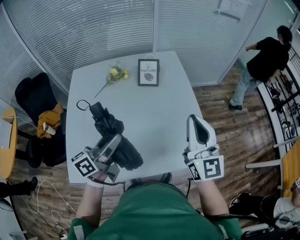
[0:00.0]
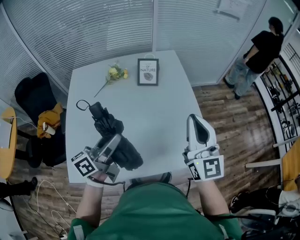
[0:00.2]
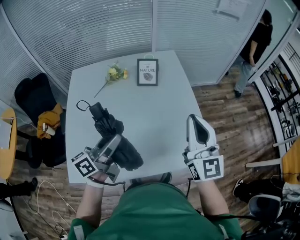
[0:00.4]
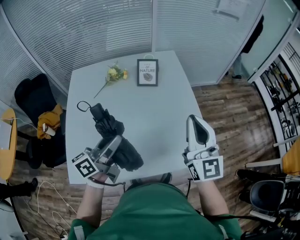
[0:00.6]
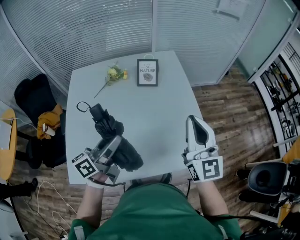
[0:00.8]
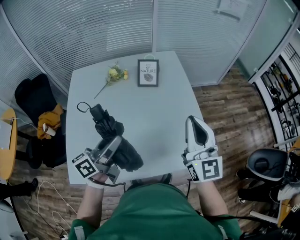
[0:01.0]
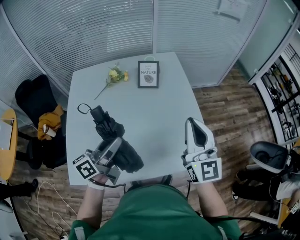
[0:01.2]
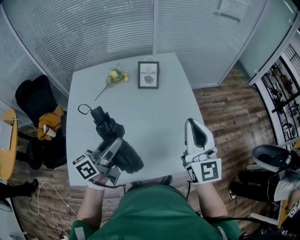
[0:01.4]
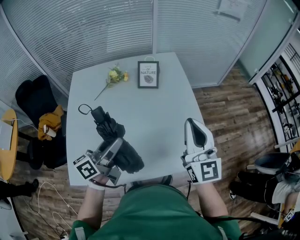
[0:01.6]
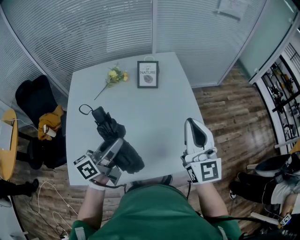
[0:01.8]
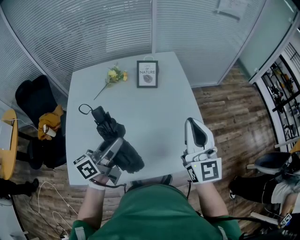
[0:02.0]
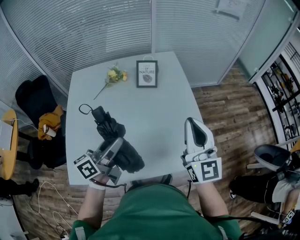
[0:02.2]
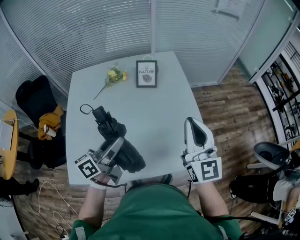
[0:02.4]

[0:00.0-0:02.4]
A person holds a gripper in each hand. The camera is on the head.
0:00.0 to 0:01.2: Neither gripper changes place.
0:01.2 to 0:02.4: Both grippers stay put.

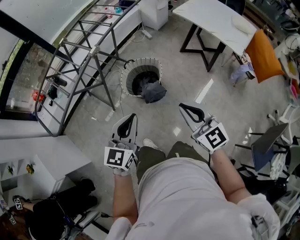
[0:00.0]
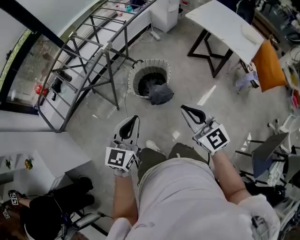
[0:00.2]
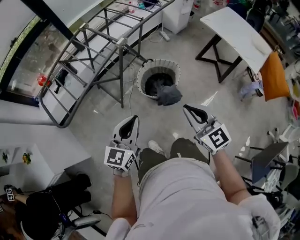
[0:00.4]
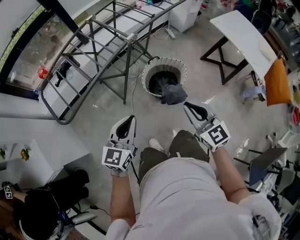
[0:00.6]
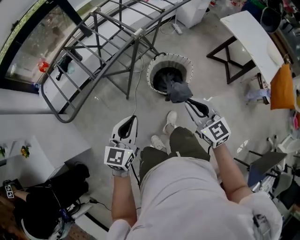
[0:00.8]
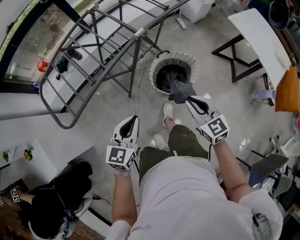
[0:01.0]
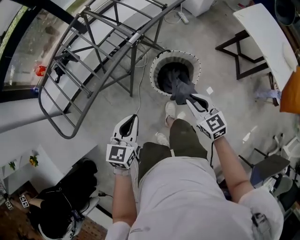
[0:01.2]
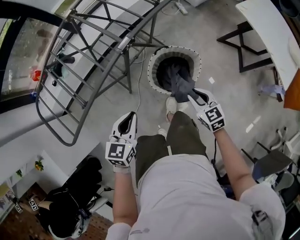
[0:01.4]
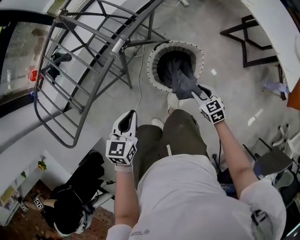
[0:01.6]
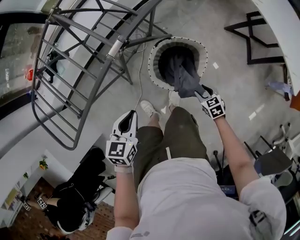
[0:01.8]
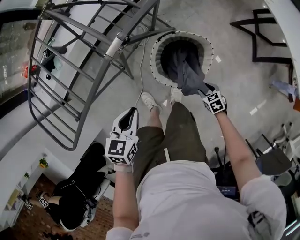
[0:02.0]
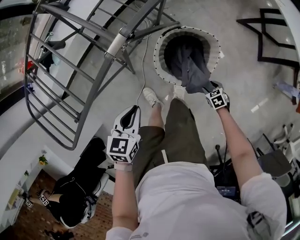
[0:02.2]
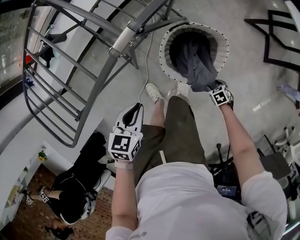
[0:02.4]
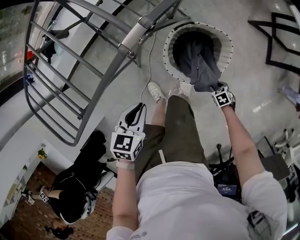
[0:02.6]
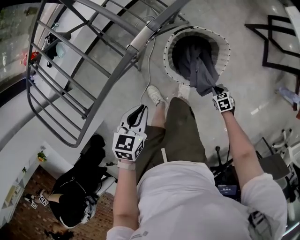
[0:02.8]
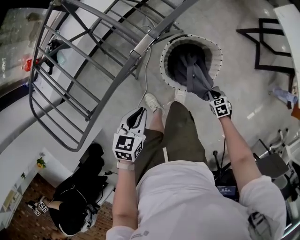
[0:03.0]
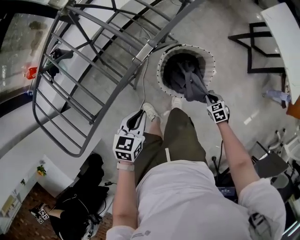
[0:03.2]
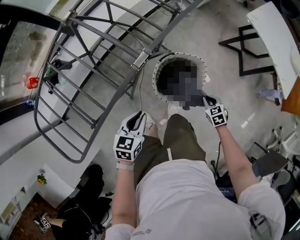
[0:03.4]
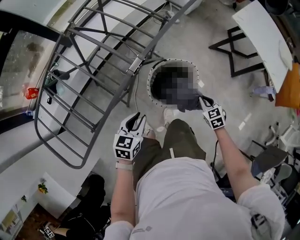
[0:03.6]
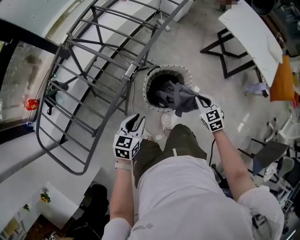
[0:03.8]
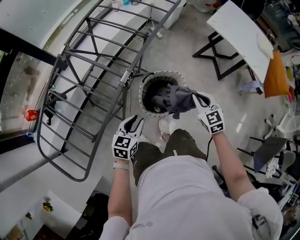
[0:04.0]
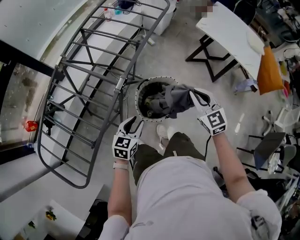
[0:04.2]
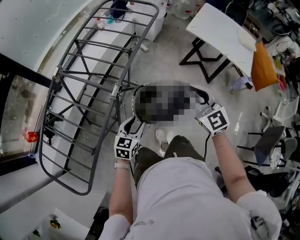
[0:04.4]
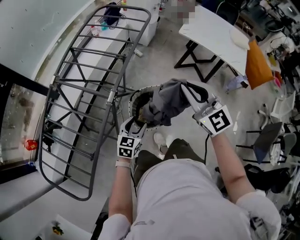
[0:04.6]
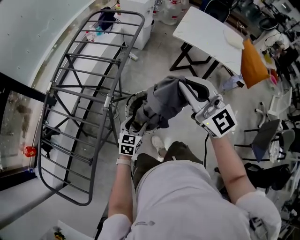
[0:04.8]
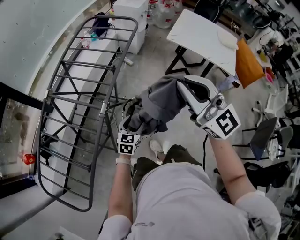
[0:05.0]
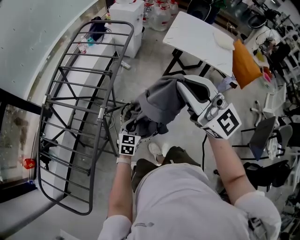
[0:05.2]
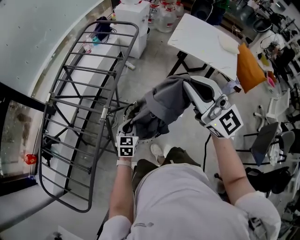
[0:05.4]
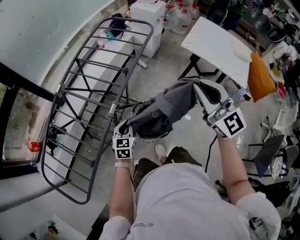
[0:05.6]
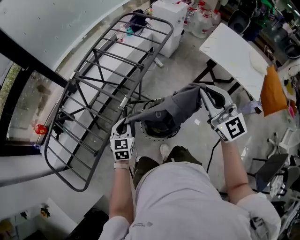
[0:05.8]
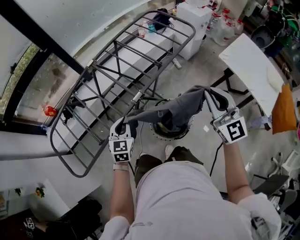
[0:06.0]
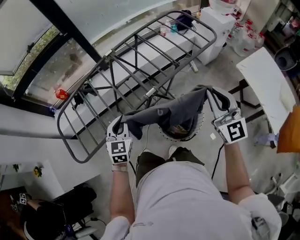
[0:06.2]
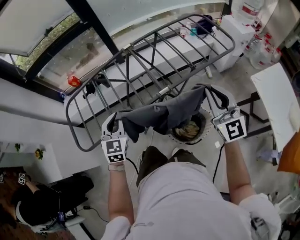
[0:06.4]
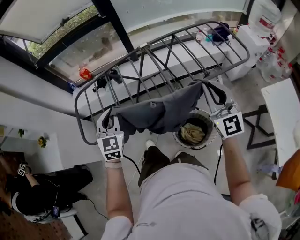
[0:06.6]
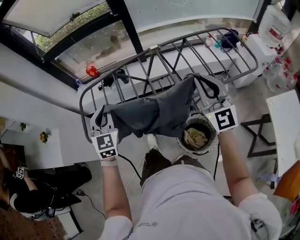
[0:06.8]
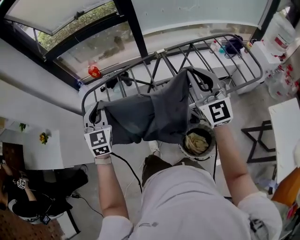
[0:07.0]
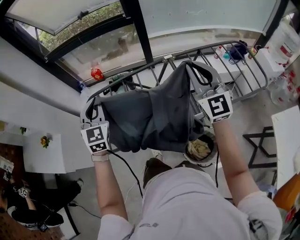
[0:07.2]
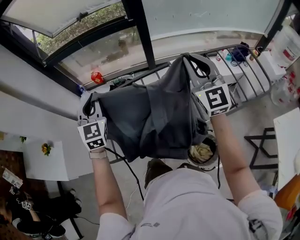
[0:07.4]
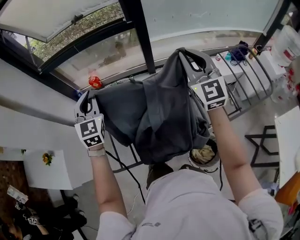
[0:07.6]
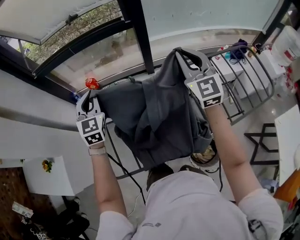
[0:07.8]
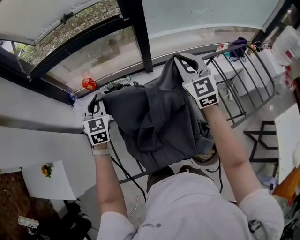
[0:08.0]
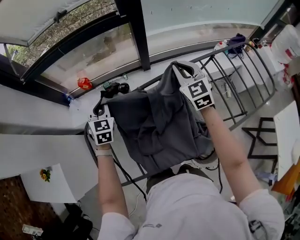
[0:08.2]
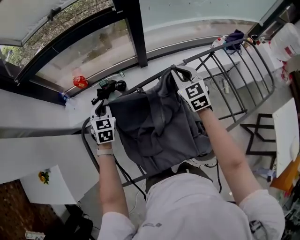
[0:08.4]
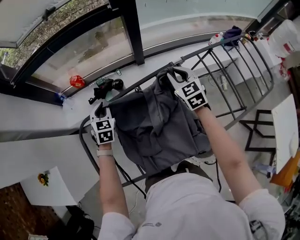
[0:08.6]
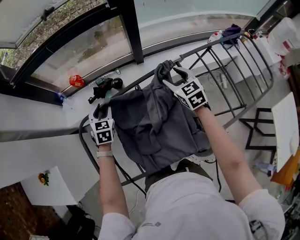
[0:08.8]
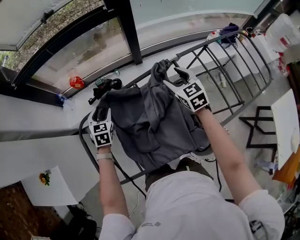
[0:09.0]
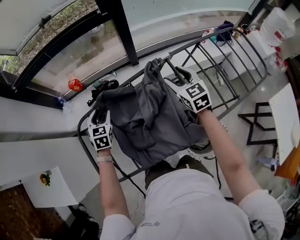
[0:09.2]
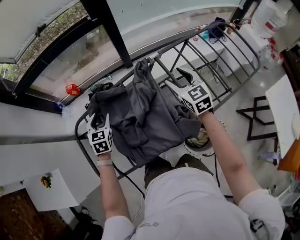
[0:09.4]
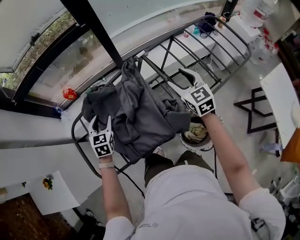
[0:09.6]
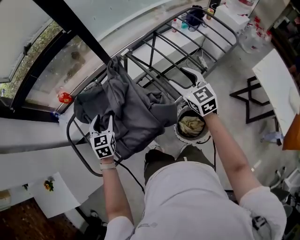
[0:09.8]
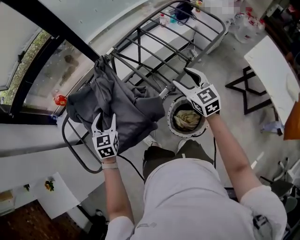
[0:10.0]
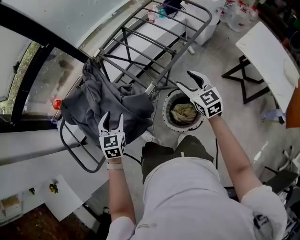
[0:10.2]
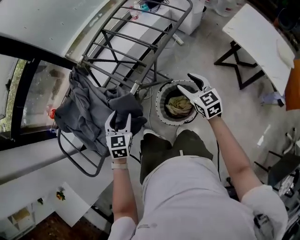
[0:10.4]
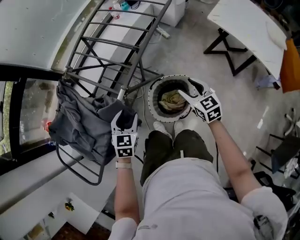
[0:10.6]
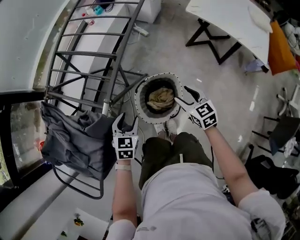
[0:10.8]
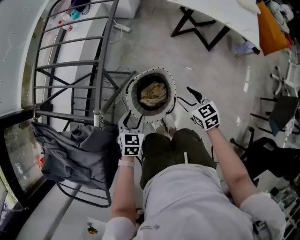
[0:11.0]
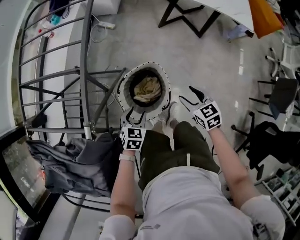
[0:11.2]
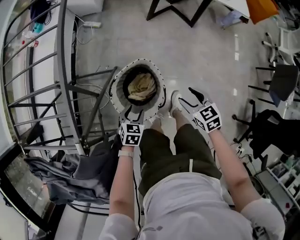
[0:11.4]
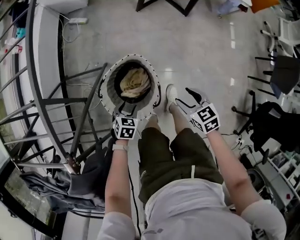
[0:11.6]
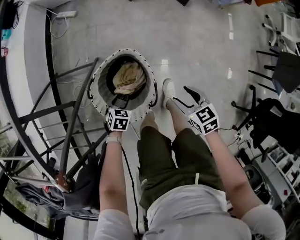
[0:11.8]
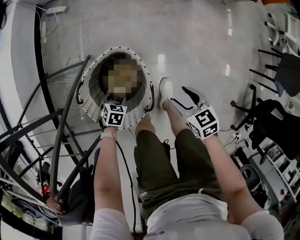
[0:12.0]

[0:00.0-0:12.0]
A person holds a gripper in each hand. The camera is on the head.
0:00.0 to 0:01.6: The right gripper moves downward and forward, roughly 50 cm, tilts its fingers roughly 40 degrees downward, and opens; the left gripper heads forward, downward and to the left, covering roughly 40 cm, and points its fingers about 30 degrees further downward.
0:01.6 to 0:03.0: The right gripper travels downward by some 20 cm, rotates roughly 20 degrees, and closes its fingers; the left gripper travels downward by approximately 10 cm.
0:03.0 to 0:04.4: The right gripper travels upward by about 50 cm, and tilts its fingers roughly 50 degrees upward. The left gripper shifts some 10 cm upward, swivels roughly 30 degrees, and opens its fingers.
0:04.4 to 0:06.0: The left gripper moves approximately 15 cm, changes its angle by approximately 40 degrees, and closes up. Meanwhile the right gripper shifts about 10 cm upward, and changes its angle by roughly 20 degrees.
0:06.0 to 0:07.6: The two grippers travel together, about 50 cm. The left gripper swivels about 40 degrees; the right gripper rotates roughly 30 degrees.
0:07.6 to 0:09.0: The grippers both shift downward by roughly 25 cm. The right gripper tilts its fingers some 30 degrees downward, and opens up, while the left gripper points its fingers some 30 degrees further downward, and opens up.
0:09.0 to 0:10.4: The two grippers travel together, approximately 50 cm. The right gripper changes its angle by some 30 degrees; the left gripper swivels roughly 40 degrees.
0:10.4 to 0:12.0: Both grippers travel together downward, about 50 cm. The left gripper points its fingers about 30 degrees further downward. Meanwhile the right gripper rotates about 50 degrees.

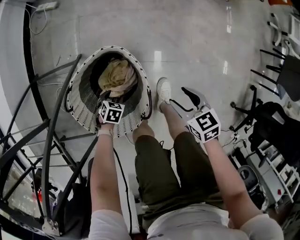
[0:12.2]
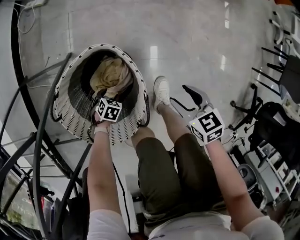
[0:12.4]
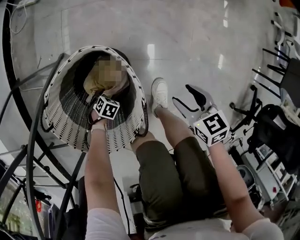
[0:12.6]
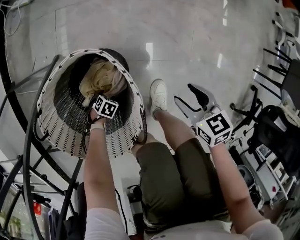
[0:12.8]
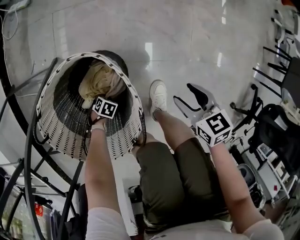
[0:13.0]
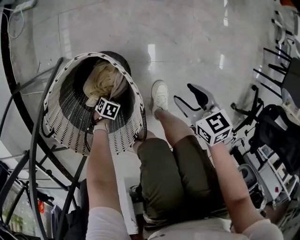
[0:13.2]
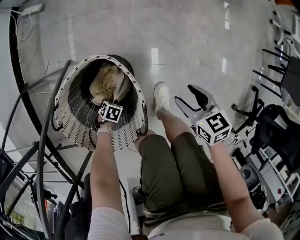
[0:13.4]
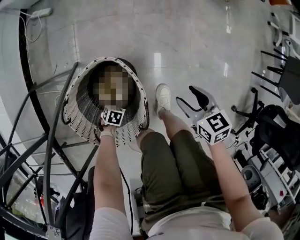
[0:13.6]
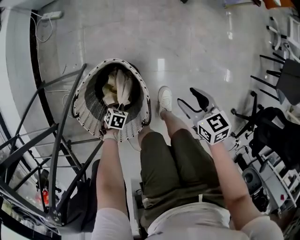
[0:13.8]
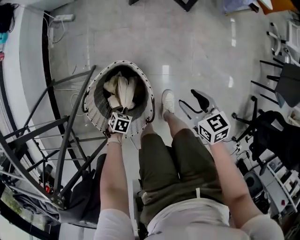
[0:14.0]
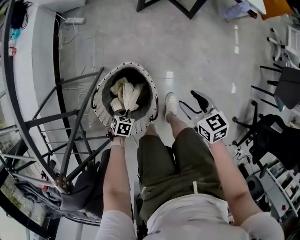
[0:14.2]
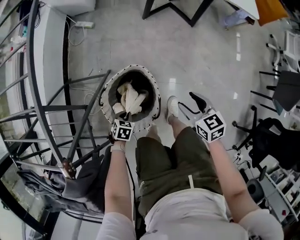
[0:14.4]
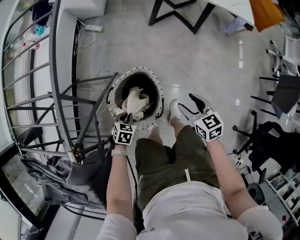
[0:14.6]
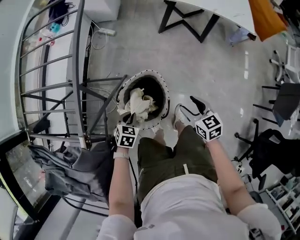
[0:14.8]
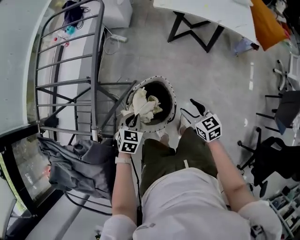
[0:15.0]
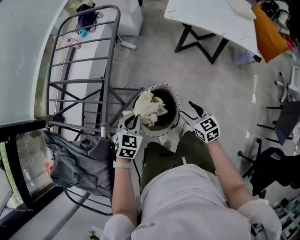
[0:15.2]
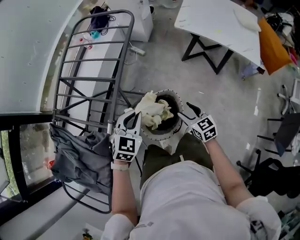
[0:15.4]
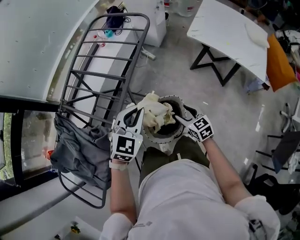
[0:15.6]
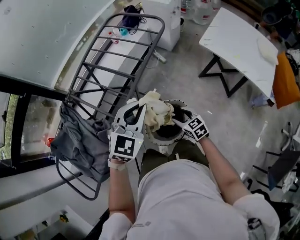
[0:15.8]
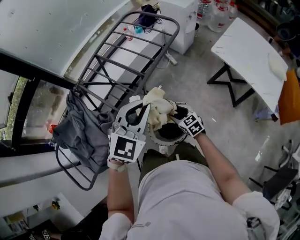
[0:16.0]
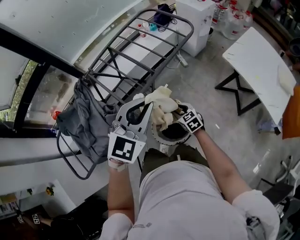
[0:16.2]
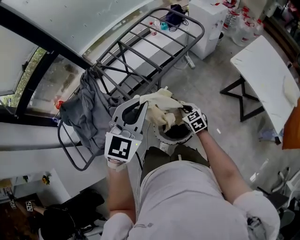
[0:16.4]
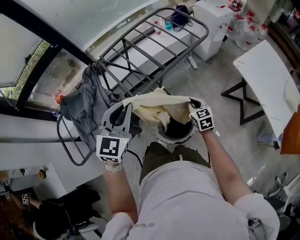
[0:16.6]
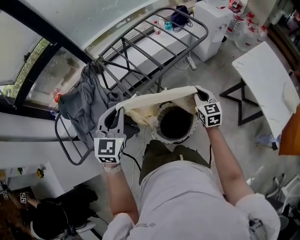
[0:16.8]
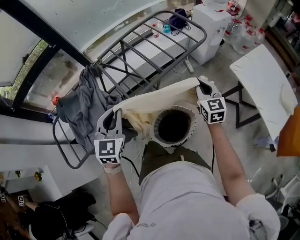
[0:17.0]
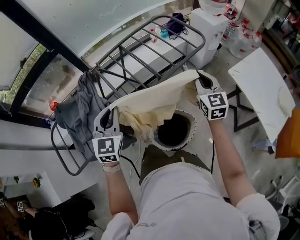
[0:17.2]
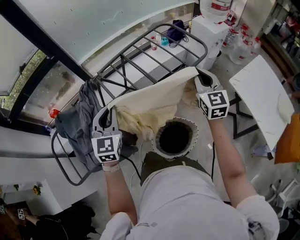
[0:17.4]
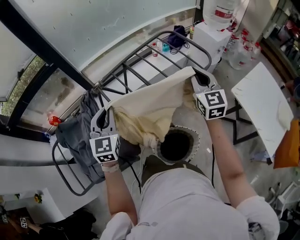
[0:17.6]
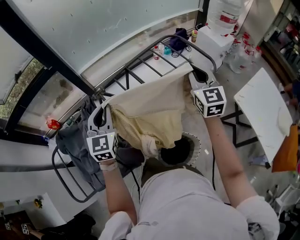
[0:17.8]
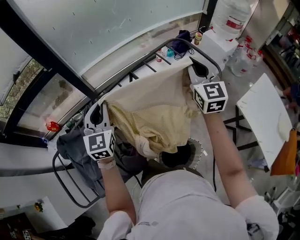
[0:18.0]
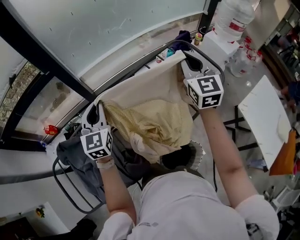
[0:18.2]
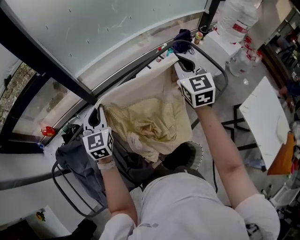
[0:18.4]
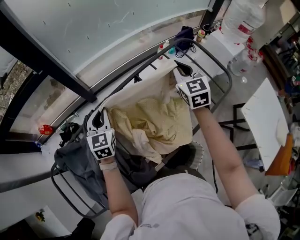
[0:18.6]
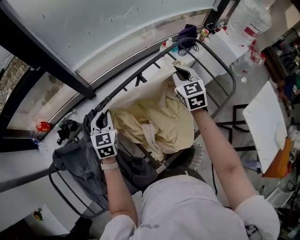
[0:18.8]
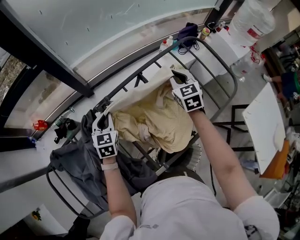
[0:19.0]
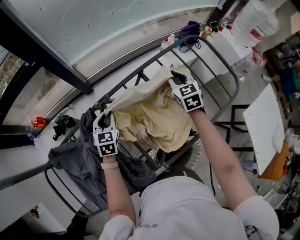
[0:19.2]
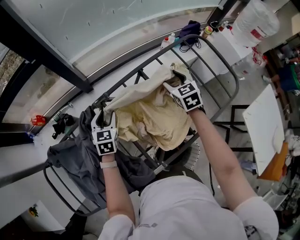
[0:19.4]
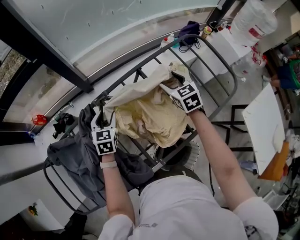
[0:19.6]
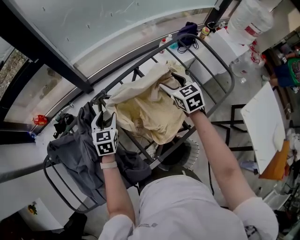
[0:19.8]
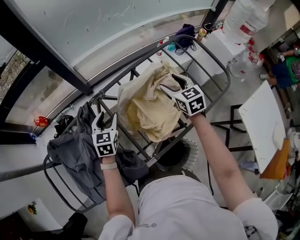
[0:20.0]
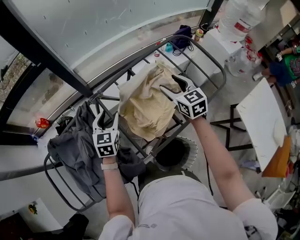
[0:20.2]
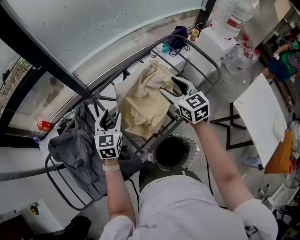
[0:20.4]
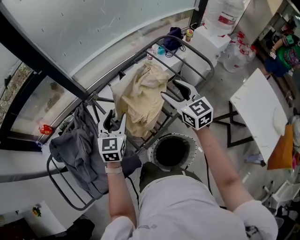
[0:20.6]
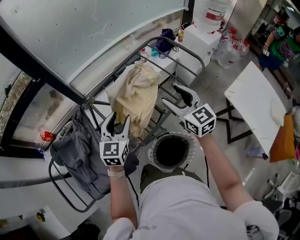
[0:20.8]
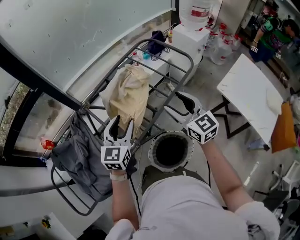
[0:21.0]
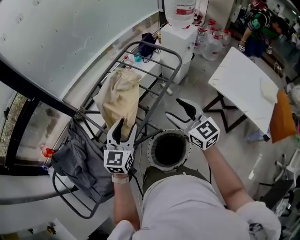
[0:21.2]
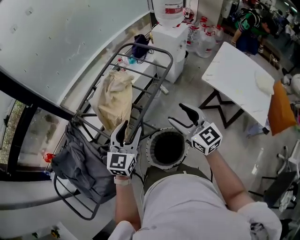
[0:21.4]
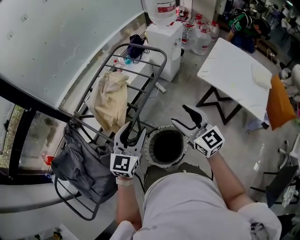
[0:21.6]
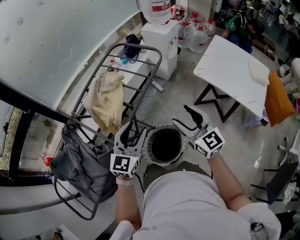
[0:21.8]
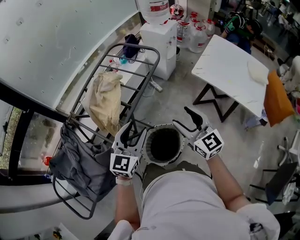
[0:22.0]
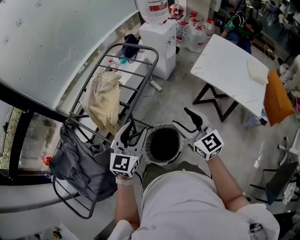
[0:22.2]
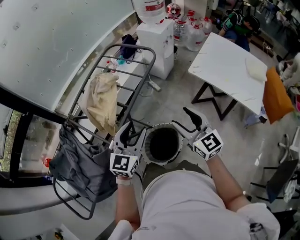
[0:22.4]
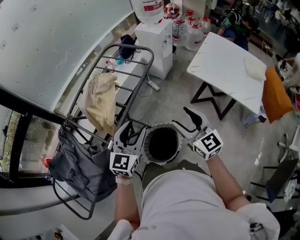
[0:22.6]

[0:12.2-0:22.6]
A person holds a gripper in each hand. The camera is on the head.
0:12.2 to 0:13.6: The right gripper goes downward and returns, about 10 cm each way. The left gripper travels downward and back again, approximately 20 cm each way, and closes.
0:13.6 to 0:15.2: The left gripper heads upward, covering about 60 cm, and changes its angle by some 50 degrees; the right gripper heads upward, covering some 35 cm, and rotates some 30 degrees.
0:15.2 to 0:16.6: The right gripper moves about 20 cm, rotates approximately 30 degrees, and closes, while the left gripper shifts some 30 cm upward, and tips its fingers upward by some 30 degrees.
0:16.6 to 0:18.2: The left gripper moves forward and to the left, roughly 40 cm, and rotates approximately 20 degrees. Meanwhile the right gripper is displaced forward and upward by some 50 cm, and swivels some 30 degrees.
0:18.2 to 0:19.6: Both grippers move downward, about 25 cm. The left gripper swivels roughly 30 degrees, and opens, while the right gripper tips its fingers downward by approximately 30 degrees, and opens up.
0:19.6 to 0:21.2: The left gripper travels to the right, backward and upward by about 40 cm, and turns by roughly 40 degrees; the right gripper heads backward, covering some 40 cm, and swivels about 30 degrees.
0:21.2 to 0:22.6: The two grippers go approximately 15 cm to the right and backward.
